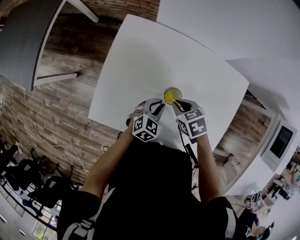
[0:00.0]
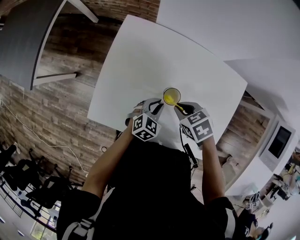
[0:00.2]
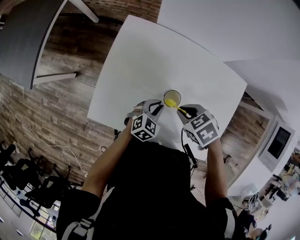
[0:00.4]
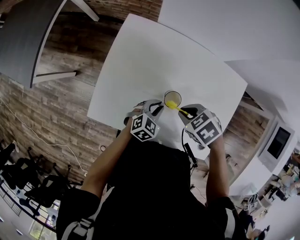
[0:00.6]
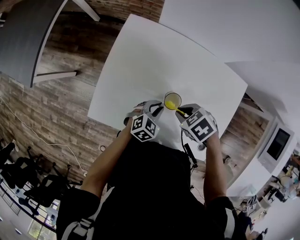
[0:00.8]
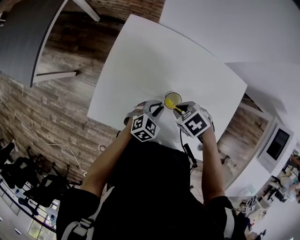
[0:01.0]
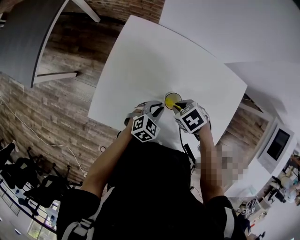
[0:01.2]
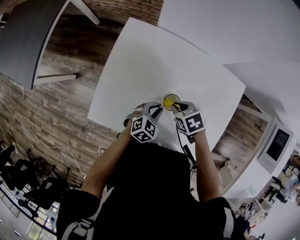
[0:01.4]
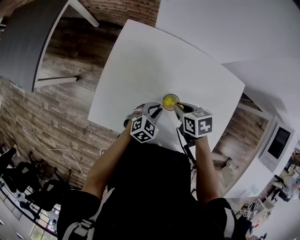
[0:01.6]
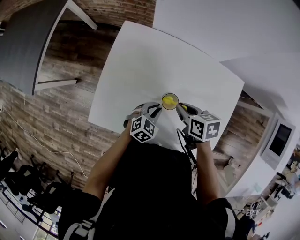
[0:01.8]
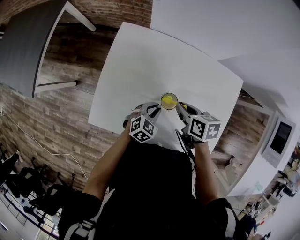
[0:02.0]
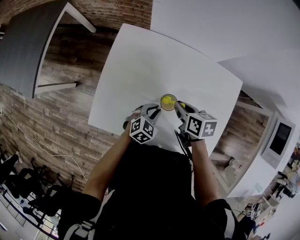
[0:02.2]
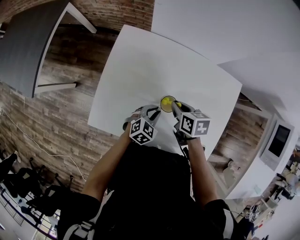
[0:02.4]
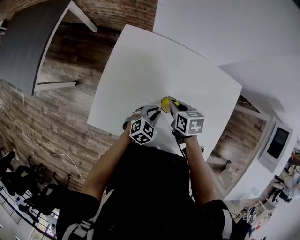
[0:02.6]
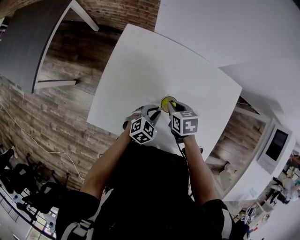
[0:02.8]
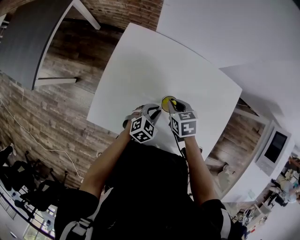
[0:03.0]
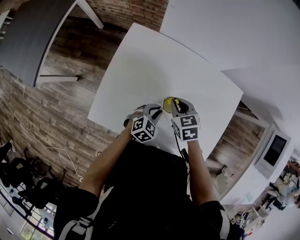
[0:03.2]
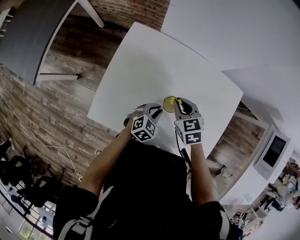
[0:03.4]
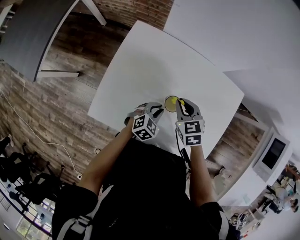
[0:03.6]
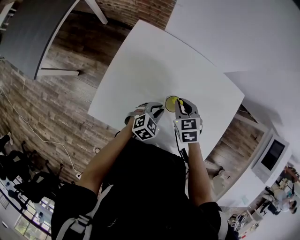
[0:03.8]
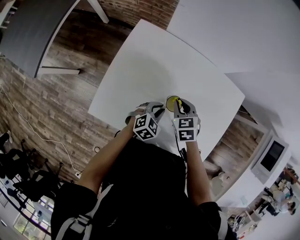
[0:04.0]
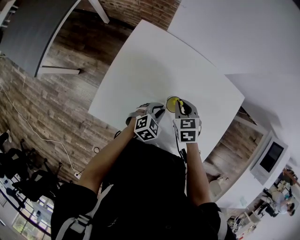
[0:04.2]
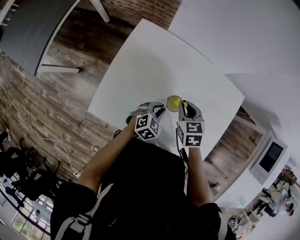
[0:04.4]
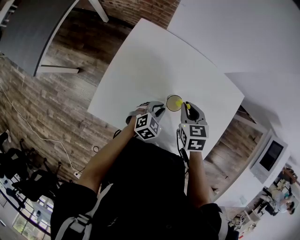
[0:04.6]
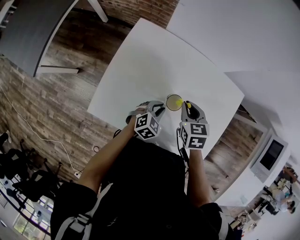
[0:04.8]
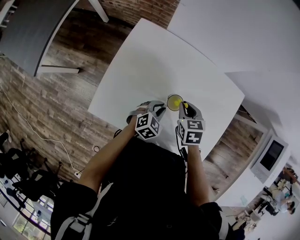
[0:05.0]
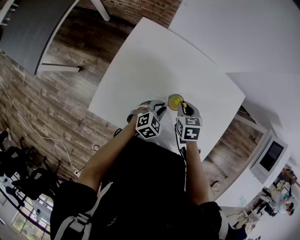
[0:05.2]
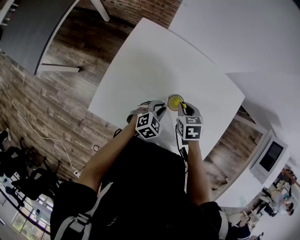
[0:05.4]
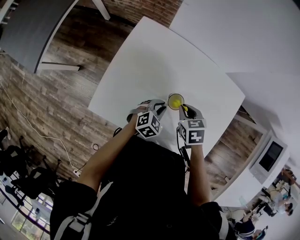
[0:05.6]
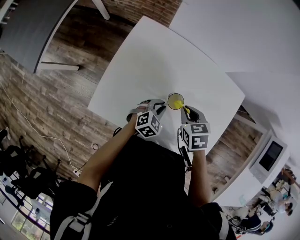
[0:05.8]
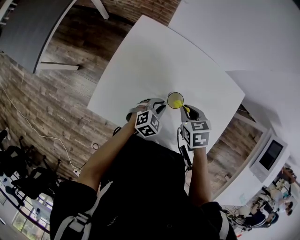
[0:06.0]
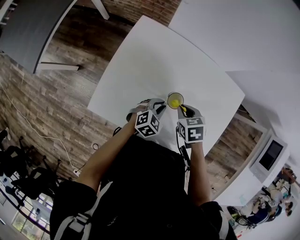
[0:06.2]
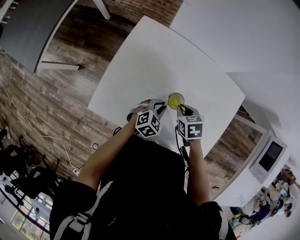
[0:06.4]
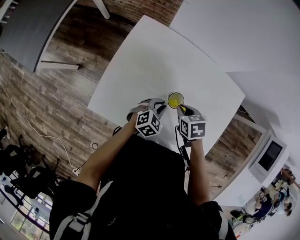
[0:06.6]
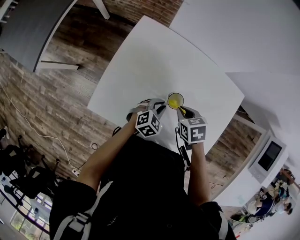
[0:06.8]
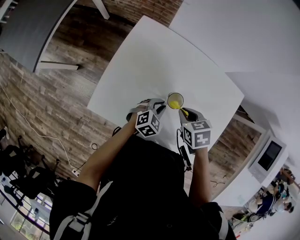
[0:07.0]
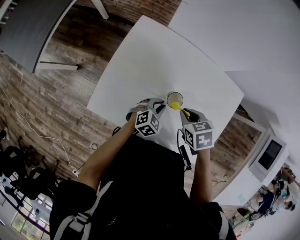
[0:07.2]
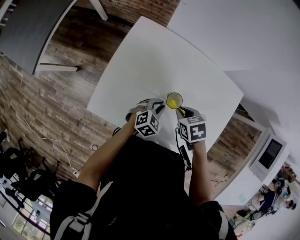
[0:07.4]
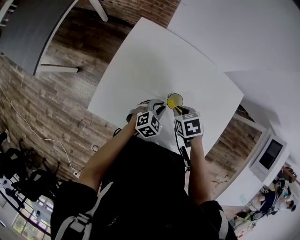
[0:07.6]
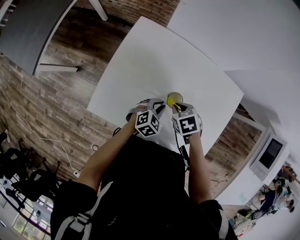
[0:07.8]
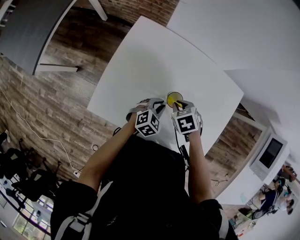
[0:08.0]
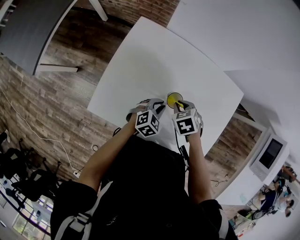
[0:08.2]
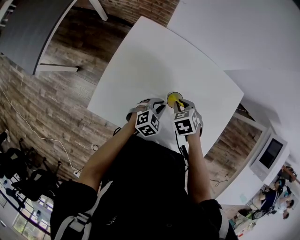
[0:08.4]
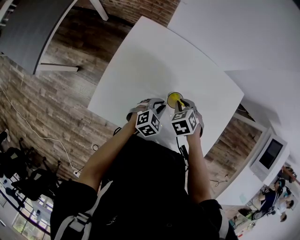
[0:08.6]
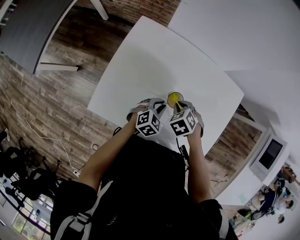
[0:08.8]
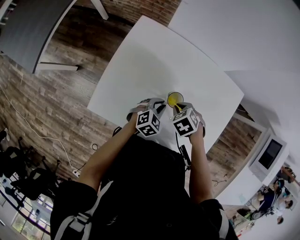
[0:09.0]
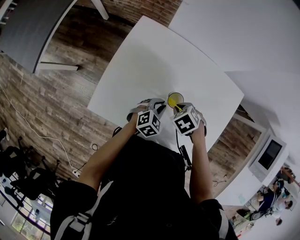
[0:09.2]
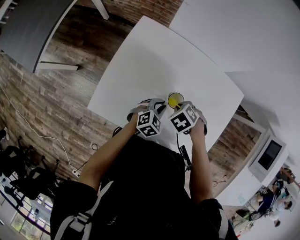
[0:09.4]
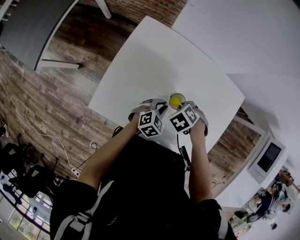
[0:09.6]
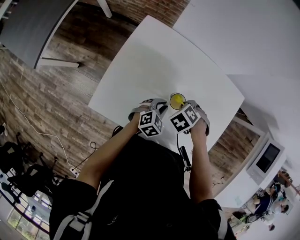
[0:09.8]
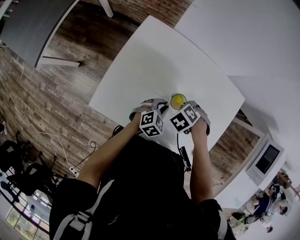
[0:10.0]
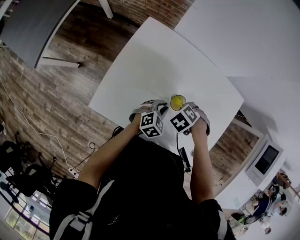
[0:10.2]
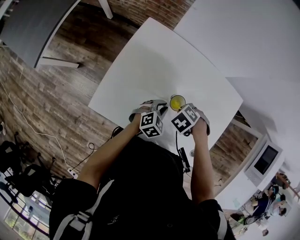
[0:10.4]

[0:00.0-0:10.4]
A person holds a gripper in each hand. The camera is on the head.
0:03.0 to 0:04.4: The right gripper goes up and down, roughly 5 cm each way, reversing 2 times.
0:04.4 to 0:06.0: The grippers move only a little.
0:06.0 to 0:07.4: The grippers stay close to where they were, moving slightly.
0:07.4 to 0:09.0: The right gripper swivels roughly 20 degrees.
0:09.0 to 0:10.4: The grippers make only small movements.

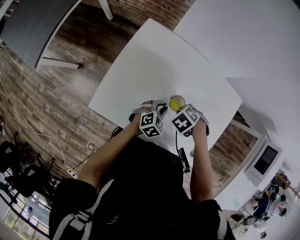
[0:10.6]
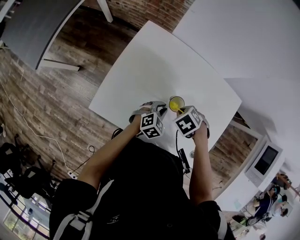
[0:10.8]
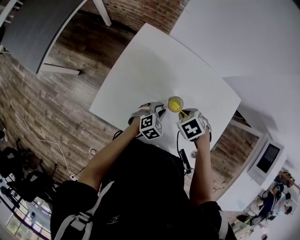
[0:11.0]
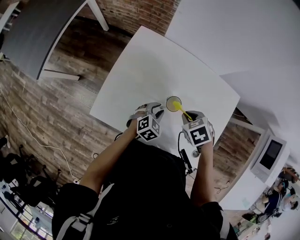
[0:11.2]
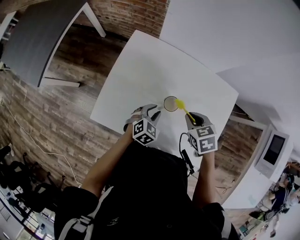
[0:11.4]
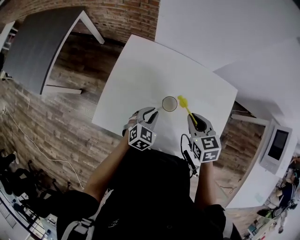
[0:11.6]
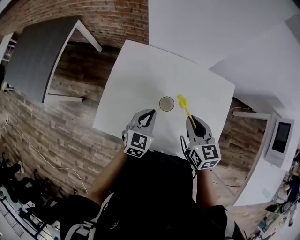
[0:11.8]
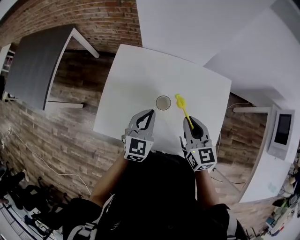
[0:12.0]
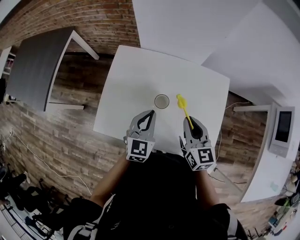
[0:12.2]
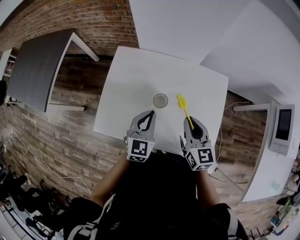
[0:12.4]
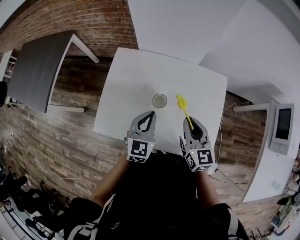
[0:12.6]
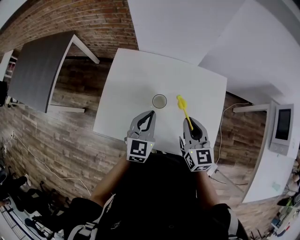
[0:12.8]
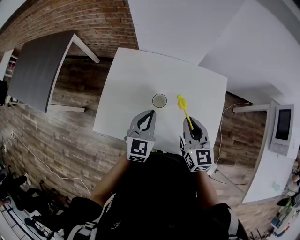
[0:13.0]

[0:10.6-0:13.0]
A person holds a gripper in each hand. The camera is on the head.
0:10.6 to 0:11.8: Both grippers travel together upward, some 15 cm. The left gripper changes its angle by some 20 degrees. Meanwhile the right gripper tilts its fingers roughly 60 degrees upward.
0:11.8 to 0:13.0: The right gripper ends up approximately 5 cm from where it was; the left gripper shifts roughly 5 cm upward.

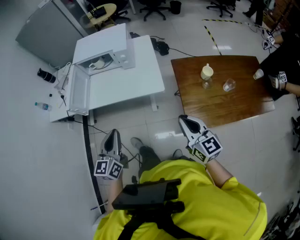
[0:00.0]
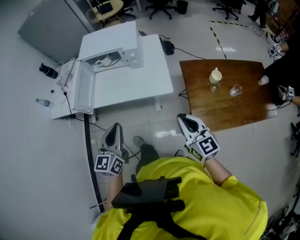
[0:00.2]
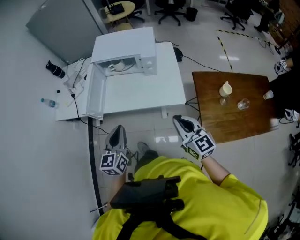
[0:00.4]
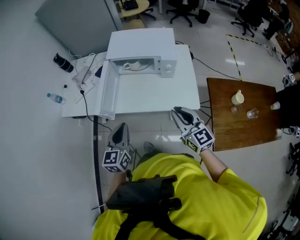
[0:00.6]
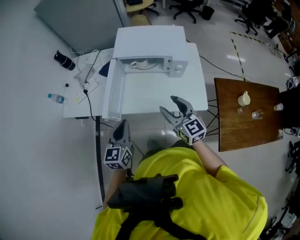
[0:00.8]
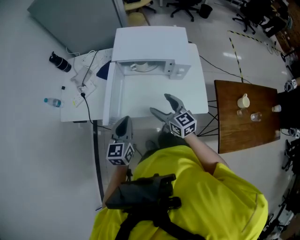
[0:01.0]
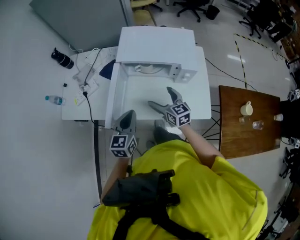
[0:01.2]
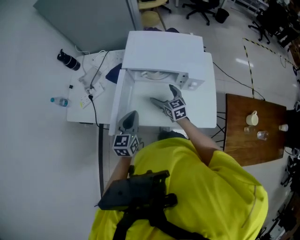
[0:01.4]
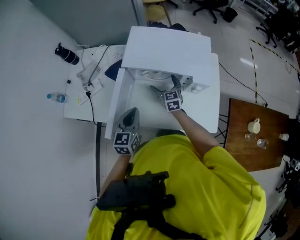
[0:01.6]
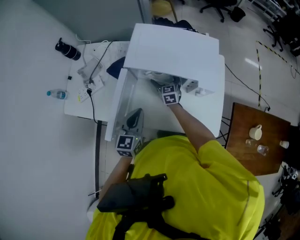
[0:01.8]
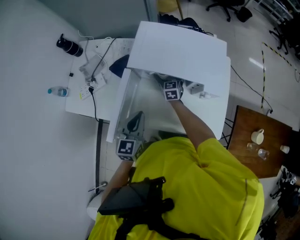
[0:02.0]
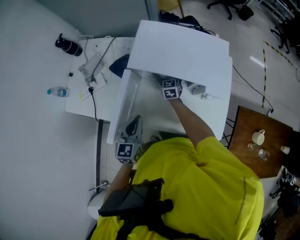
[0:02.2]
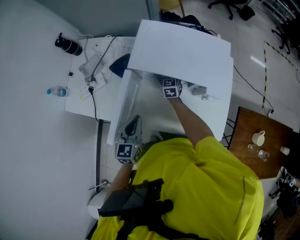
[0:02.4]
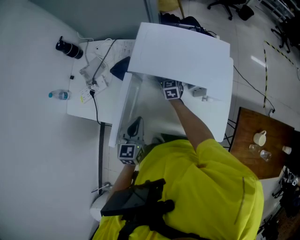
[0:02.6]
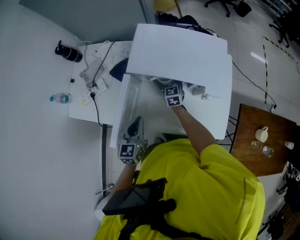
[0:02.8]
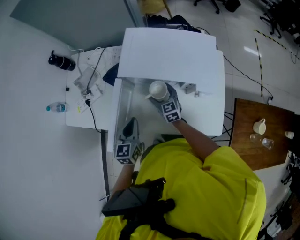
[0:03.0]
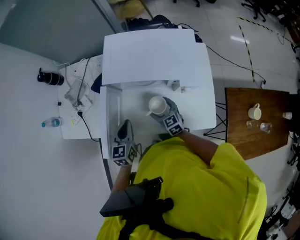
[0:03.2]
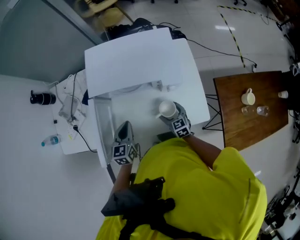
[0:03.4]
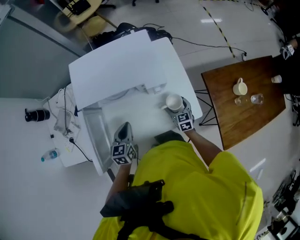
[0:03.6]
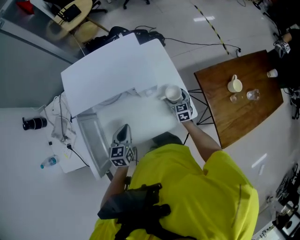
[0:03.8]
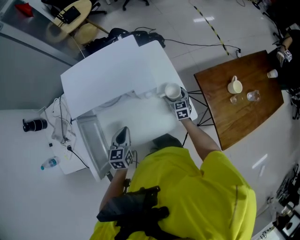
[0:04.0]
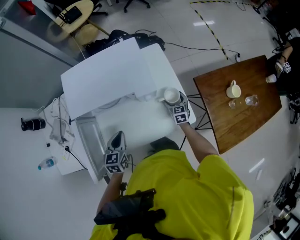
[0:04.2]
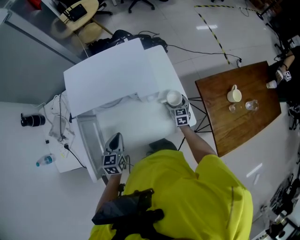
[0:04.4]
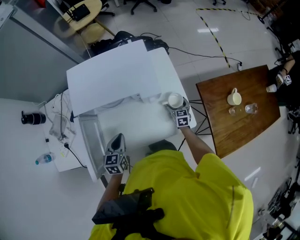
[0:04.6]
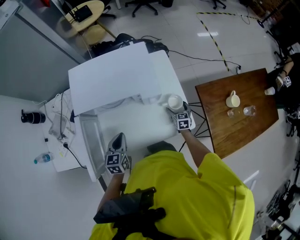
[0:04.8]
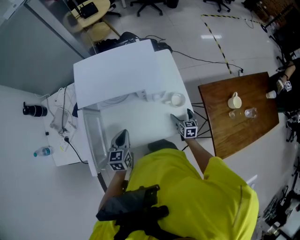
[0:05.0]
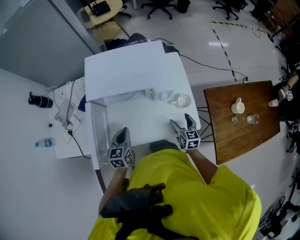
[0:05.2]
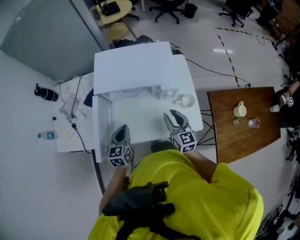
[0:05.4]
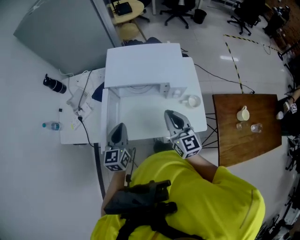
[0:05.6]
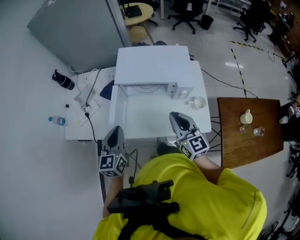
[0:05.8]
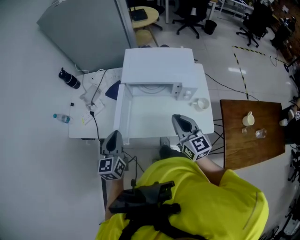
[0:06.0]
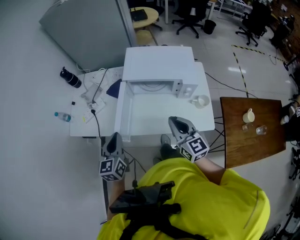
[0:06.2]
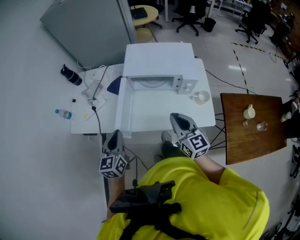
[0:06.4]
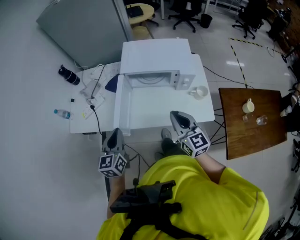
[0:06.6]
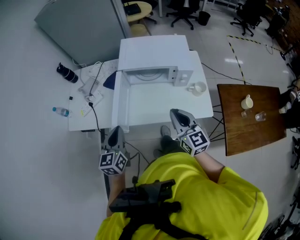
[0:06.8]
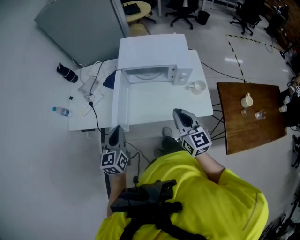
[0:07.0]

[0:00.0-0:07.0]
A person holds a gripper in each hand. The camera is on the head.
0:00.0 to 0:01.4: The two grippers travel together, forward and to the left, some 50 cm. The right gripper opens up.
0:01.4 to 0:02.8: The right gripper goes roughly 20 cm forward and downward. The left gripper goes approximately 5 cm forward.
0:02.8 to 0:04.2: The left gripper ends up some 15 cm from where it was, and turns by approximately 30 degrees, while the right gripper shifts by roughly 40 cm, and rotates approximately 30 degrees.
0:04.2 to 0:05.6: The right gripper goes approximately 40 cm upward, to the left and backward, changes its angle by approximately 40 degrees, and closes up, while the left gripper heads upward, to the left and backward, covering about 20 cm, and rotates roughly 30 degrees.
0:05.6 to 0:07.0: Both grippers move backward and to the left, some 15 cm.

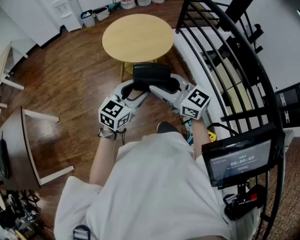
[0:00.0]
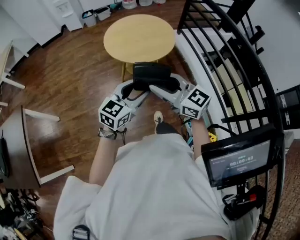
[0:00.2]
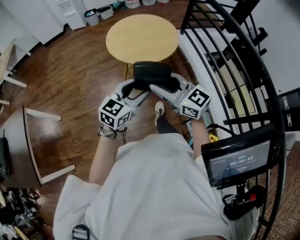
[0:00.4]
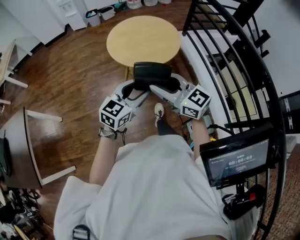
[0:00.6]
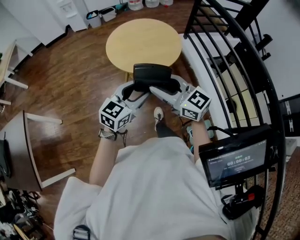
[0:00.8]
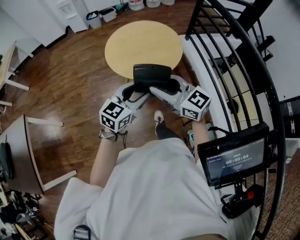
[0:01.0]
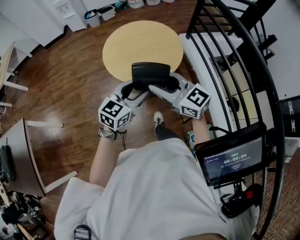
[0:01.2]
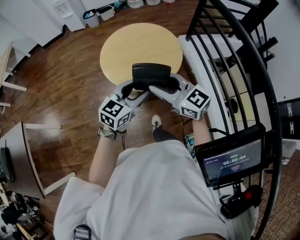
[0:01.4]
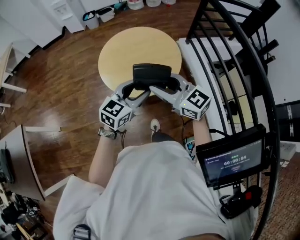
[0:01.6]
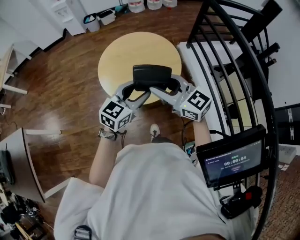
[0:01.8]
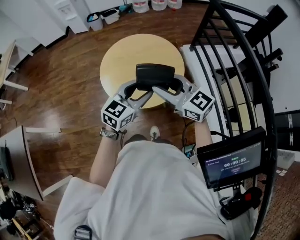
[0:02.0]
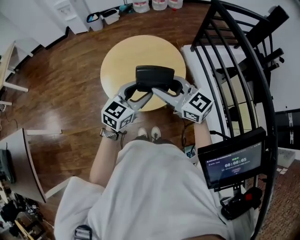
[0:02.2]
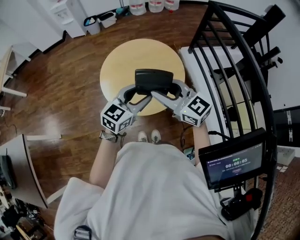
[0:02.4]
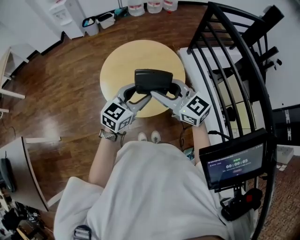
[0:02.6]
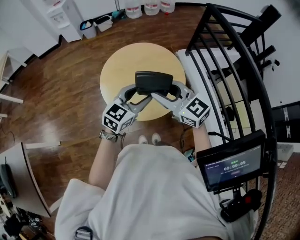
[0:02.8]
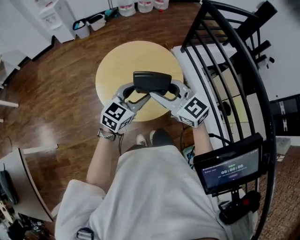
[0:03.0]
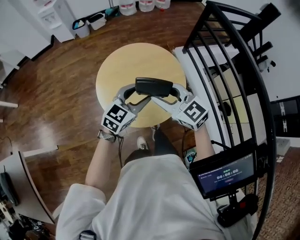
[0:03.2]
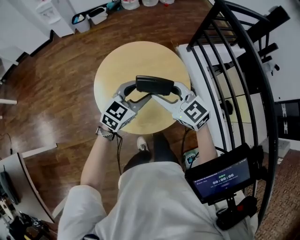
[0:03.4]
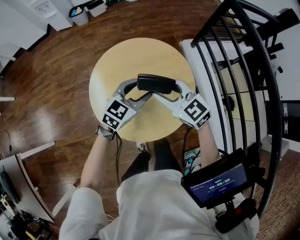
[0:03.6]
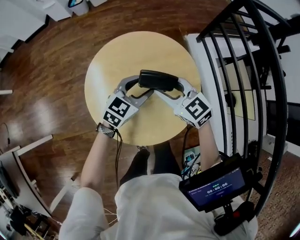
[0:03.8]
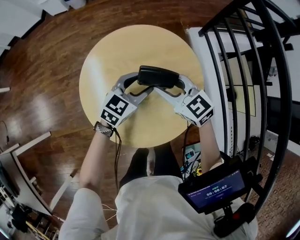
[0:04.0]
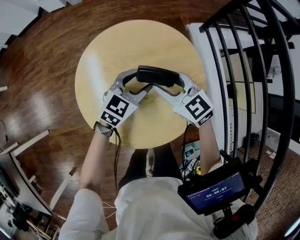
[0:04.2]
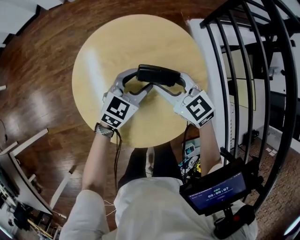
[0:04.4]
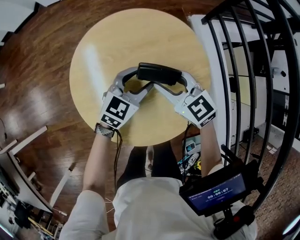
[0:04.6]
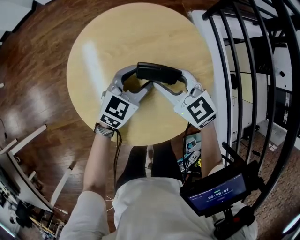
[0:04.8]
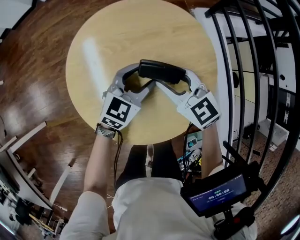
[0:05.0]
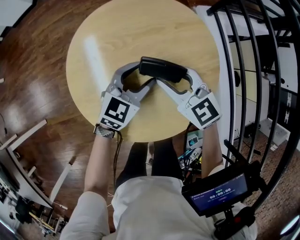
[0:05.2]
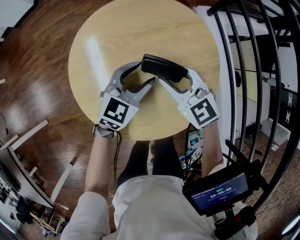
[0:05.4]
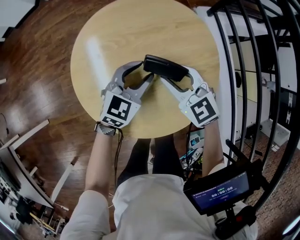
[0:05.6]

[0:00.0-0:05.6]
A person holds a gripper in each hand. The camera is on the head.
0:00.0 to 0:01.4: The two grippers go roughly 20 cm forward.
0:01.4 to 0:02.8: Both grippers travel together forward, approximately 10 cm.
0:02.8 to 0:04.2: The right gripper is displaced downward and forward by some 30 cm. Meanwhile the left gripper travels forward and downward by some 25 cm.
0:04.2 to 0:05.6: The right gripper moves some 5 cm.
